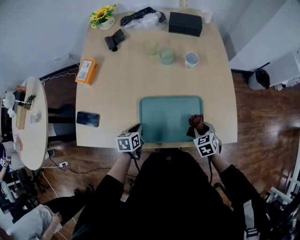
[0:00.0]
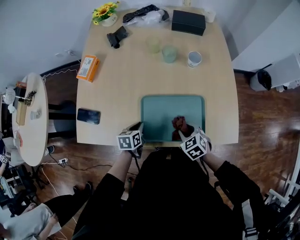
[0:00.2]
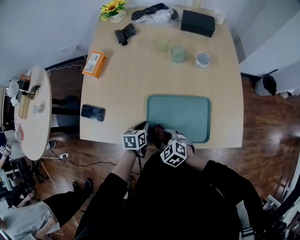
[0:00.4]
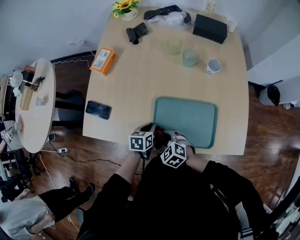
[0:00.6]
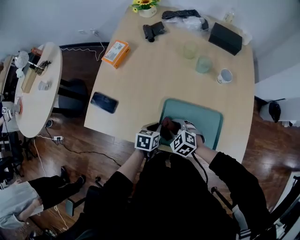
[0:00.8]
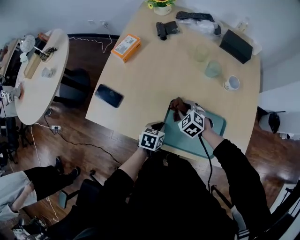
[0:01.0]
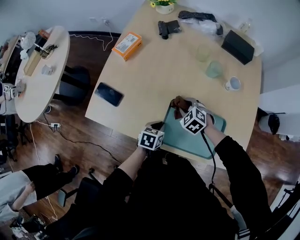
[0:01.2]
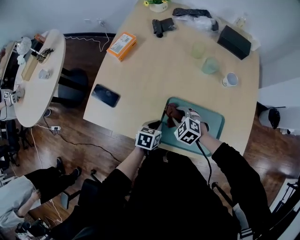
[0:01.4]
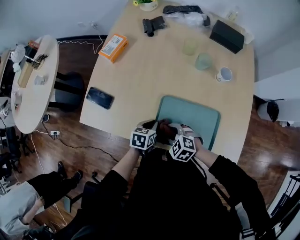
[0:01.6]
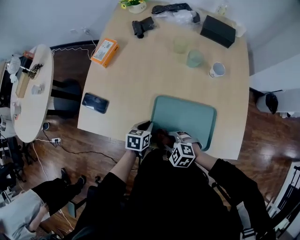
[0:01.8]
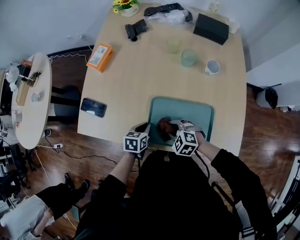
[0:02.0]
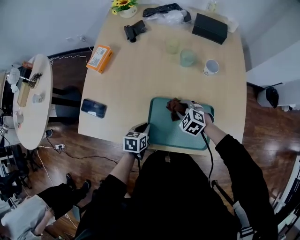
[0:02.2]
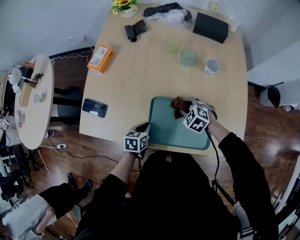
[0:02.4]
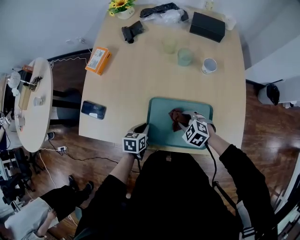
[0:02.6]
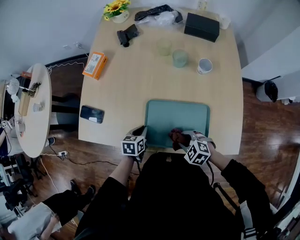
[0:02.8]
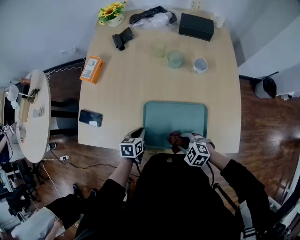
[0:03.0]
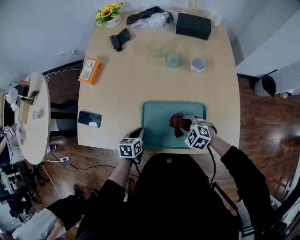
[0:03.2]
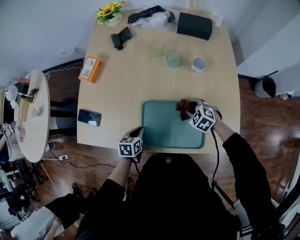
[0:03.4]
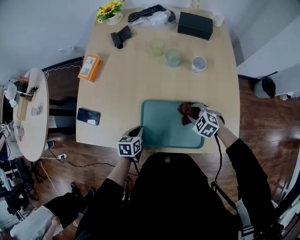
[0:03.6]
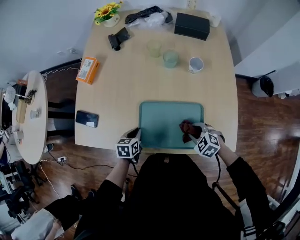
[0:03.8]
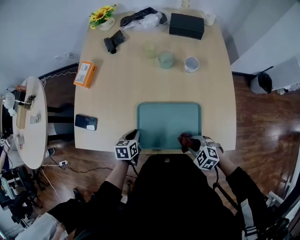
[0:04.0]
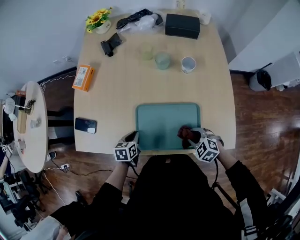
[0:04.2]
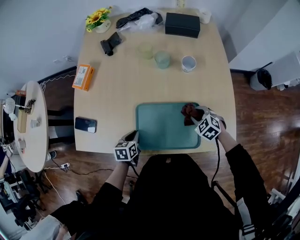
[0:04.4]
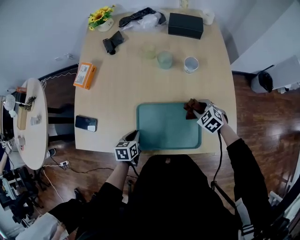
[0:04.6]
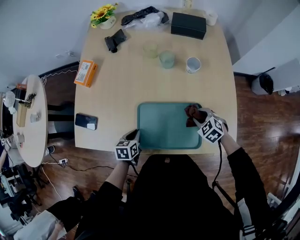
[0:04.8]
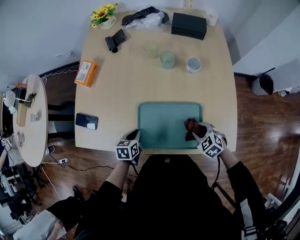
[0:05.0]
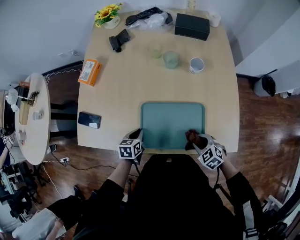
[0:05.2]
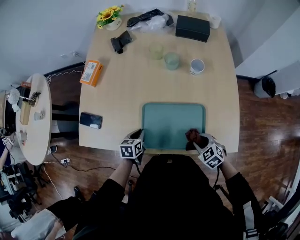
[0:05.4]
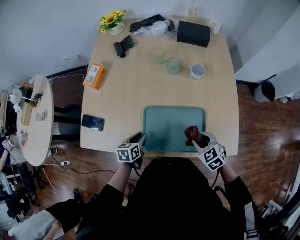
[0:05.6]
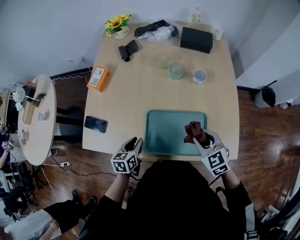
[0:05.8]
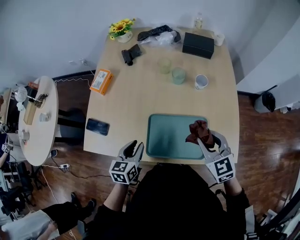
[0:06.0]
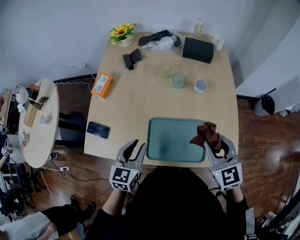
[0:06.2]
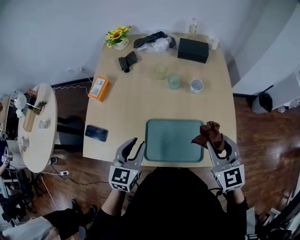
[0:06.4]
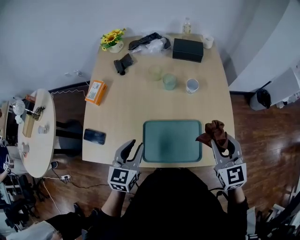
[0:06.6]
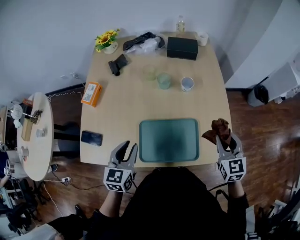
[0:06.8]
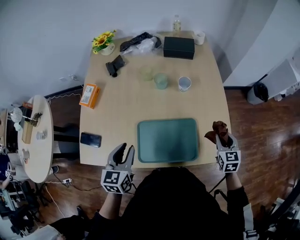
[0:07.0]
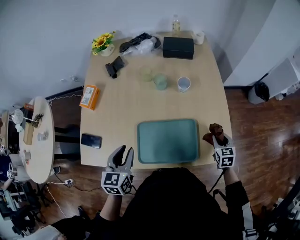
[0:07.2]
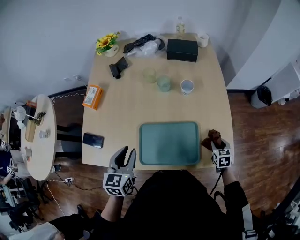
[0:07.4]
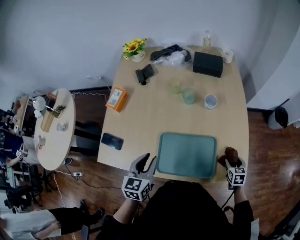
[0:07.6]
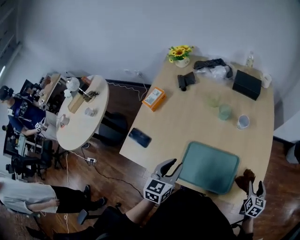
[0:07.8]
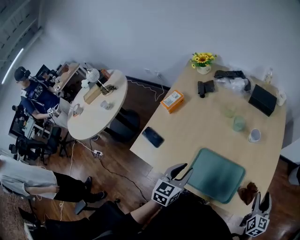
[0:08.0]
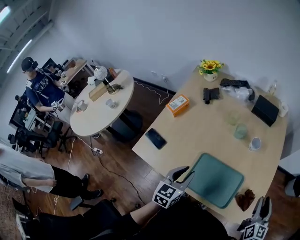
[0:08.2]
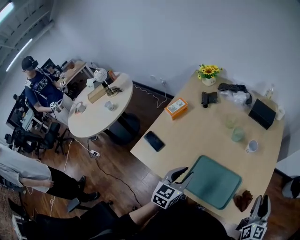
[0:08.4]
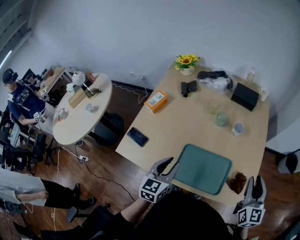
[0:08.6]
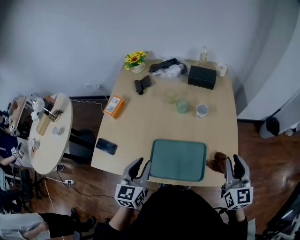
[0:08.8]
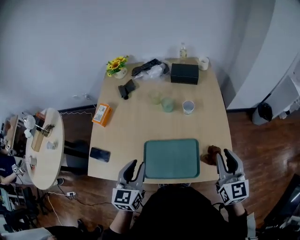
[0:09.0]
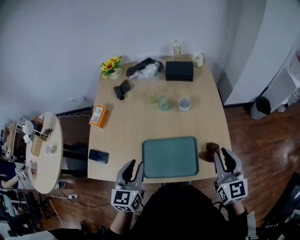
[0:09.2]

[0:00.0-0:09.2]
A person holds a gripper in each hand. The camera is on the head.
0.0 to 1.6 s: The right gripper ends up some 25 cm from where it was, and rotates around the line of its fingers by some 50 degrees, counterclockwise from behind.
1.6 to 3.0 s: The right gripper goes forward and backward, about 15 cm each way, reversing 2 times.
3.0 to 4.6 s: The right gripper moves forward and backward over some 20 cm, changing direction 2 times, and changes its angle by some 20 degrees.
4.6 to 6.2 s: The two grippers go some 25 cm upward. The right gripper tilts its fingers some 40 degrees upward. The left gripper swivels about 30 degrees, and opens up.
6.2 to 7.6 s: The right gripper moves downward and to the right, roughly 35 cm, points its fingers roughly 30 degrees further downward, and opens.
7.6 to 9.2 s: The right gripper heads upward, covering about 35 cm, points its fingers some 40 degrees further upward, and closes. The left gripper heads upward, covering approximately 10 cm.

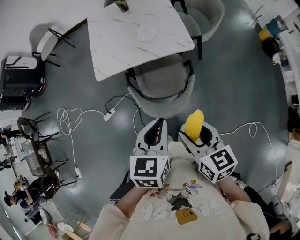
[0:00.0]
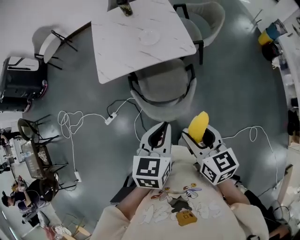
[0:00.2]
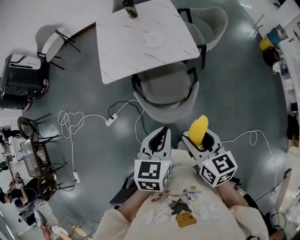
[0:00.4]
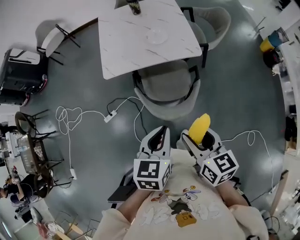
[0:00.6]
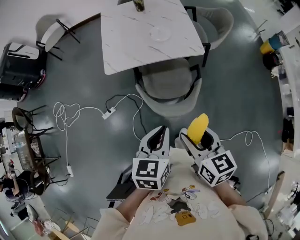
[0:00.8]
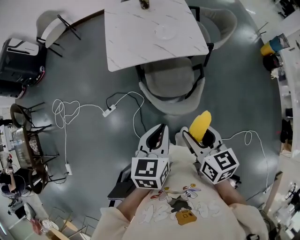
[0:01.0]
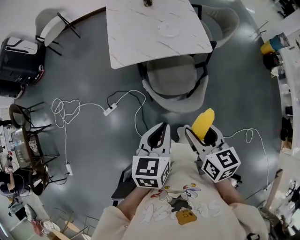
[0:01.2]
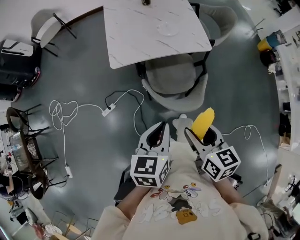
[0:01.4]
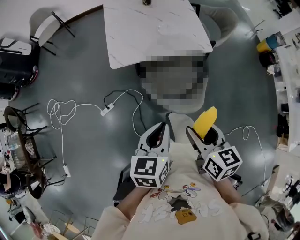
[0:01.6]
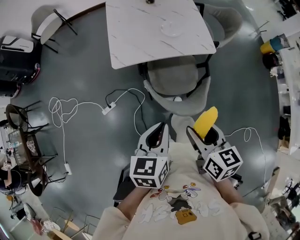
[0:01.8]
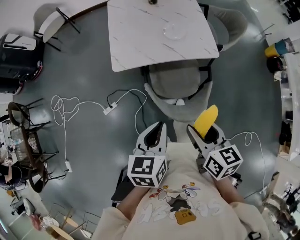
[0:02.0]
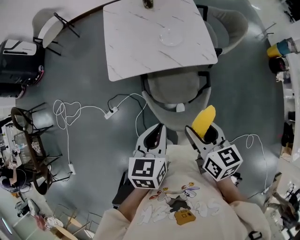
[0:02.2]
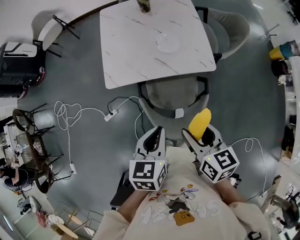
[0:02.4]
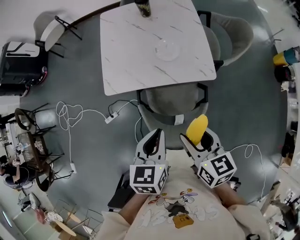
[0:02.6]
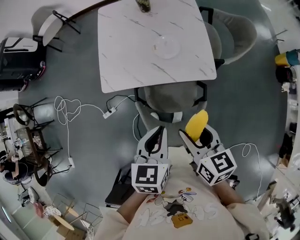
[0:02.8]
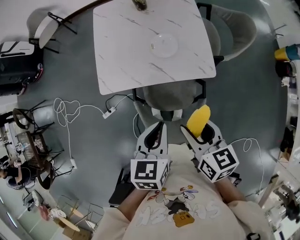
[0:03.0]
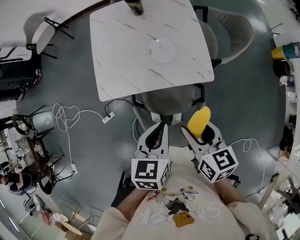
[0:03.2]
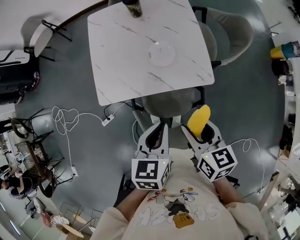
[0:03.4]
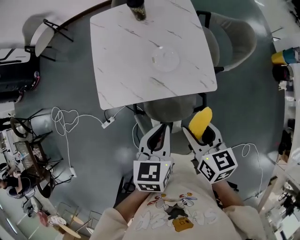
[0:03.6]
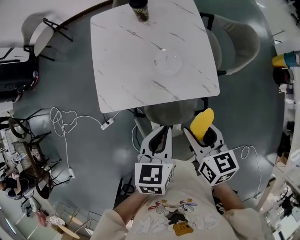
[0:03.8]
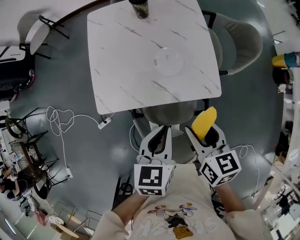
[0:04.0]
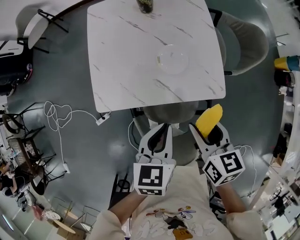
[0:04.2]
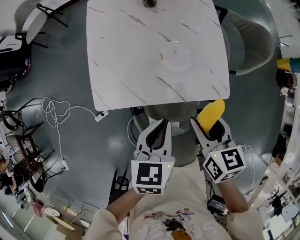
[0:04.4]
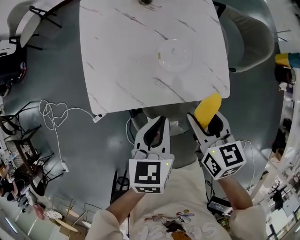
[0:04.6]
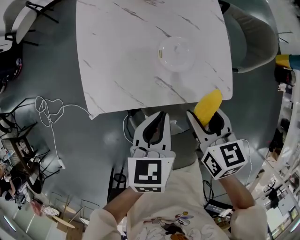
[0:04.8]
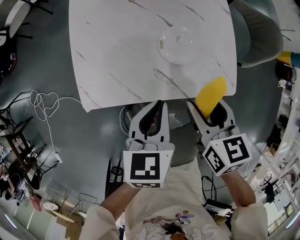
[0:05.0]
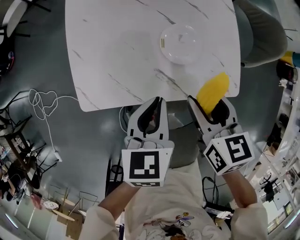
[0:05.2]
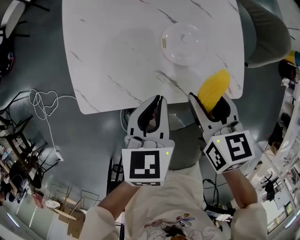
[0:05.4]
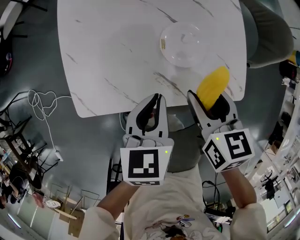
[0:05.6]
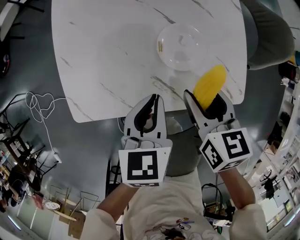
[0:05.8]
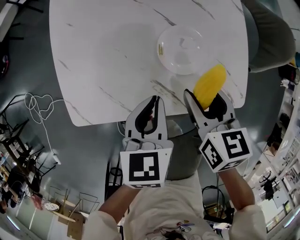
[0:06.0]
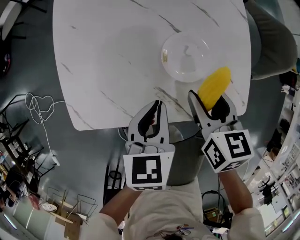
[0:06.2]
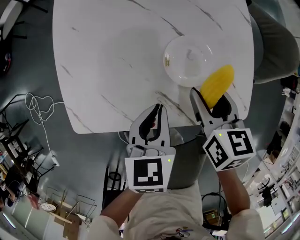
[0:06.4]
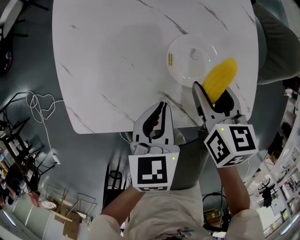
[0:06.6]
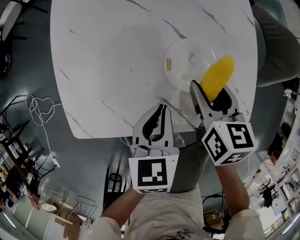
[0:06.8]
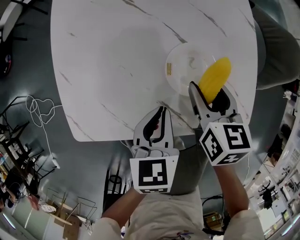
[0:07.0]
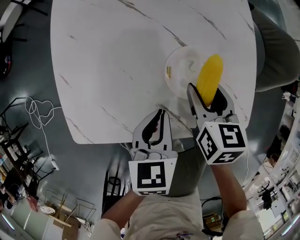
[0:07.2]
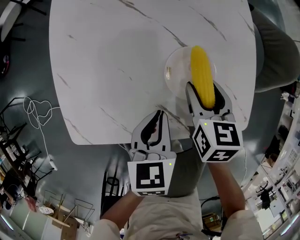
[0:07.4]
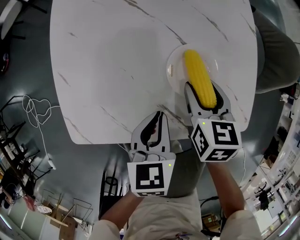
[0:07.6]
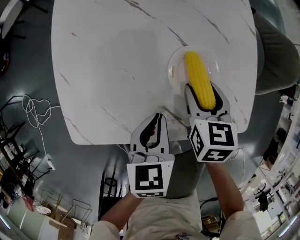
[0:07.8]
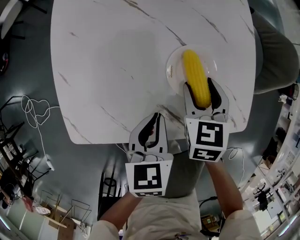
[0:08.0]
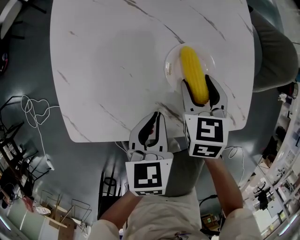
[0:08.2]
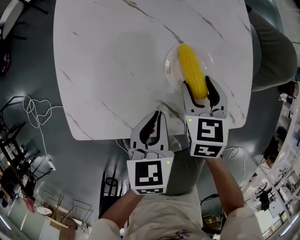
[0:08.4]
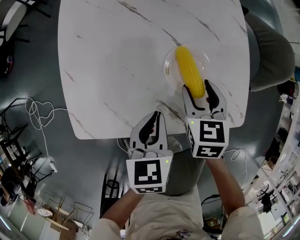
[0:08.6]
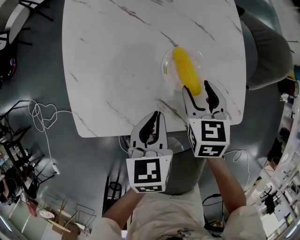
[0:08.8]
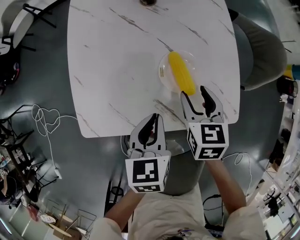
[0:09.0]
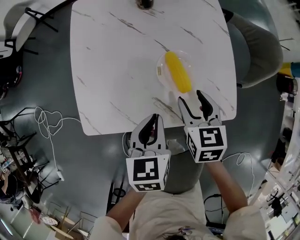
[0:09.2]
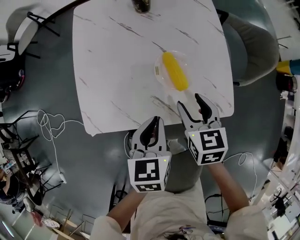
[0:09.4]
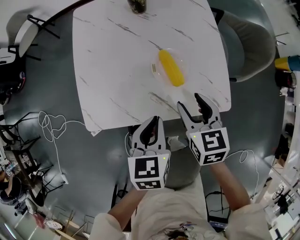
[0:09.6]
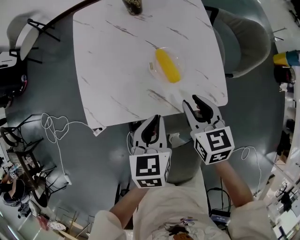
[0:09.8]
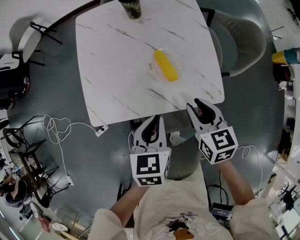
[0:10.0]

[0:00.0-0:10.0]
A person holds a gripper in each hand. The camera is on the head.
0.0 to 1.4 s: The two grippers go approximately 15 cm to the left.
1.4 to 2.8 s: Both grippers travel together forward and to the right, roughly 25 cm.
2.8 to 4.2 s: Both grippers travel together forward and downward, approximately 15 cm.
4.2 to 5.8 s: Both grippers travel together downward and forward, some 20 cm.
5.8 to 7.2 s: The right gripper shifts about 10 cm forward and downward. The left gripper moves downward, some 5 cm.
7.2 to 8.6 s: There are only small adjustments of the grippers.
8.6 to 10.0 s: Both grippers move upward and backward, some 15 cm. The right gripper closes its fingers.

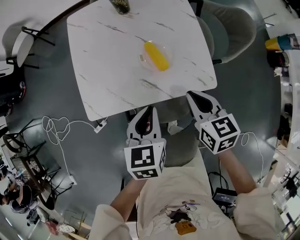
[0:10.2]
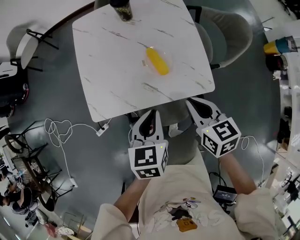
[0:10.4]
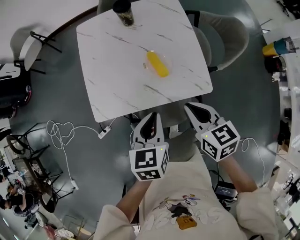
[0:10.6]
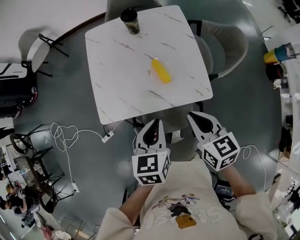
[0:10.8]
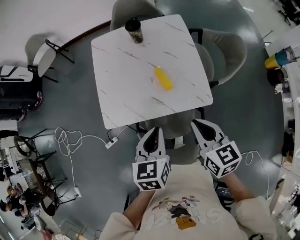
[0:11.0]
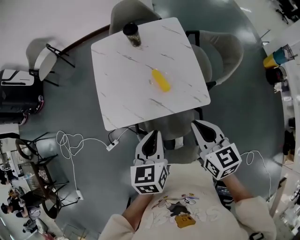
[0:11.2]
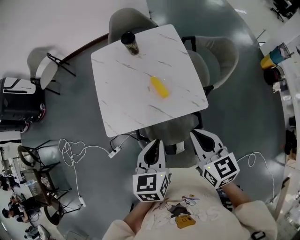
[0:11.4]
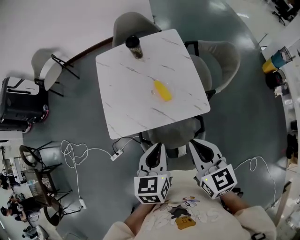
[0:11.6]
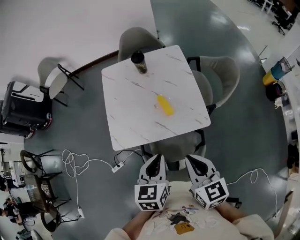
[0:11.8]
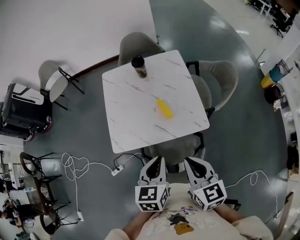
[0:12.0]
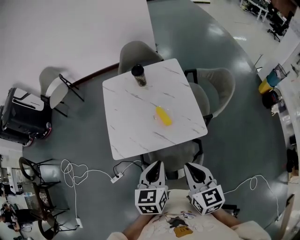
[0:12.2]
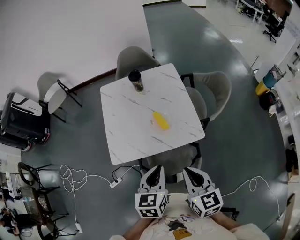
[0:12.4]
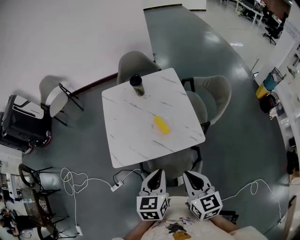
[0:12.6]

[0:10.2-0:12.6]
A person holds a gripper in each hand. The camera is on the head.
10.2 to 11.4 s: Both grippers move upward and backward, roughly 15 cm.
11.4 to 12.6 s: The right gripper is displaced backward by about 5 cm.

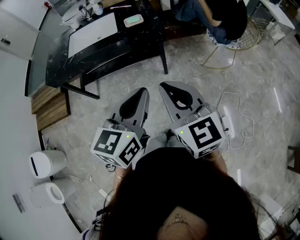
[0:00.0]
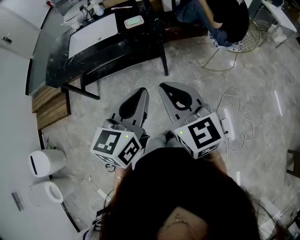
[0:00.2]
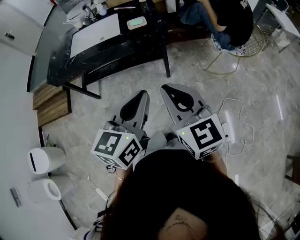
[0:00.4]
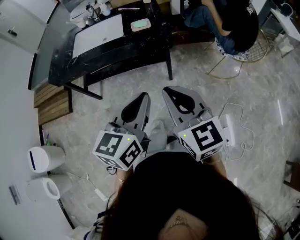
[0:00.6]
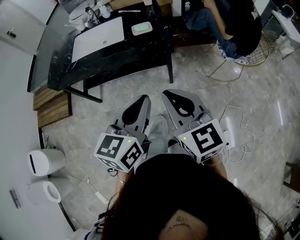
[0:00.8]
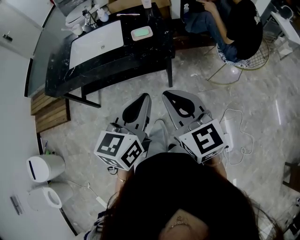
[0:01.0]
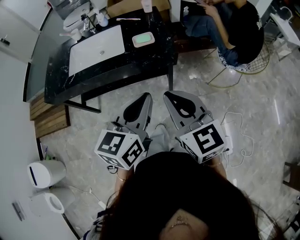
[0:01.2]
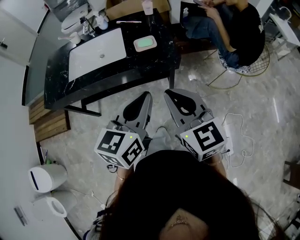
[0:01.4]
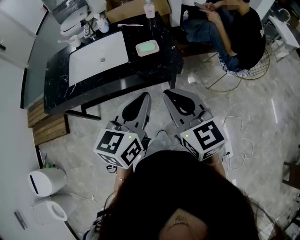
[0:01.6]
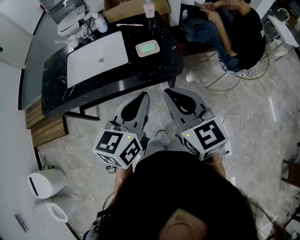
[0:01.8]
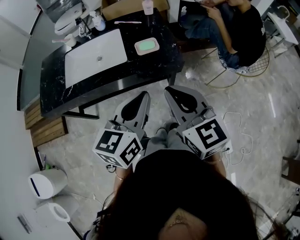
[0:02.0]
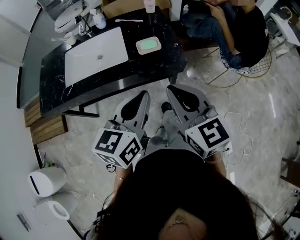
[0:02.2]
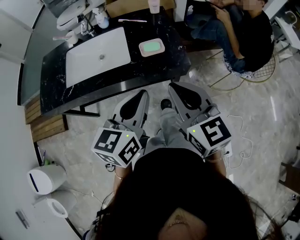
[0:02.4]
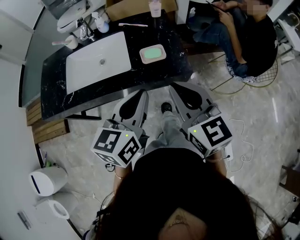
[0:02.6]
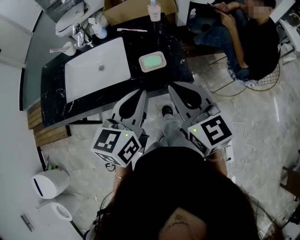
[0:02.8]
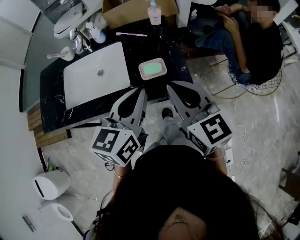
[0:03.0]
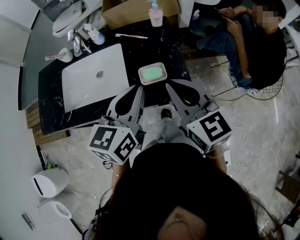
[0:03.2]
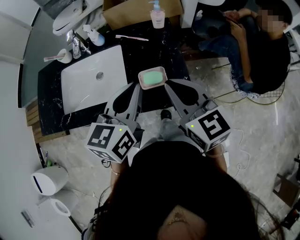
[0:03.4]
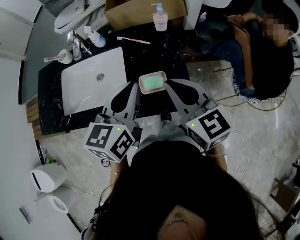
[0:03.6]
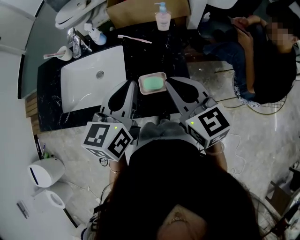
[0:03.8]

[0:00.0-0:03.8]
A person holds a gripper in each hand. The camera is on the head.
0.0 to 1.2 s: Both grippers travel together forward, about 15 cm.
1.2 to 2.6 s: Both grippers travel together forward, roughly 20 cm.
2.6 to 3.8 s: The grippers both shift forward by approximately 20 cm.
